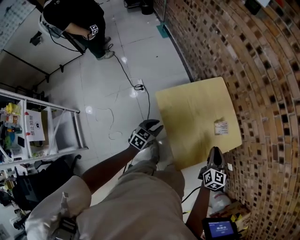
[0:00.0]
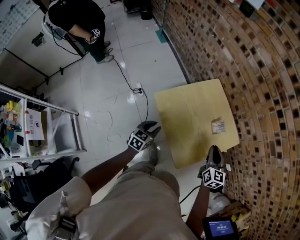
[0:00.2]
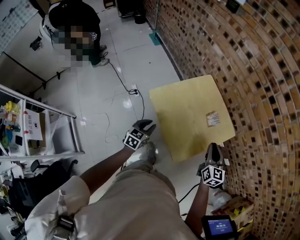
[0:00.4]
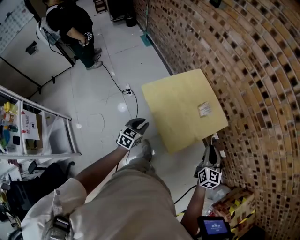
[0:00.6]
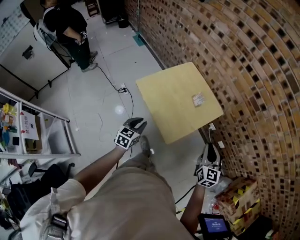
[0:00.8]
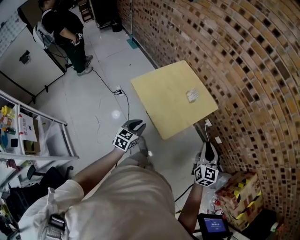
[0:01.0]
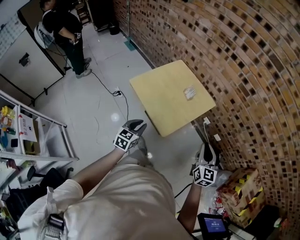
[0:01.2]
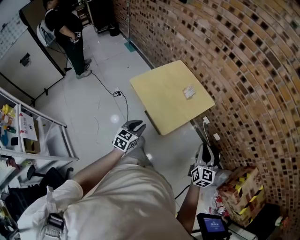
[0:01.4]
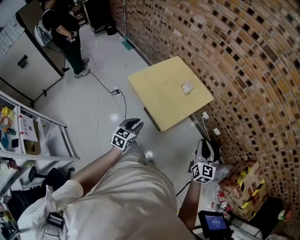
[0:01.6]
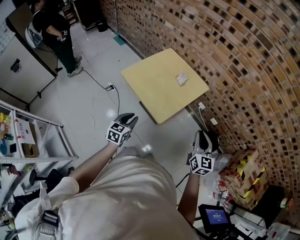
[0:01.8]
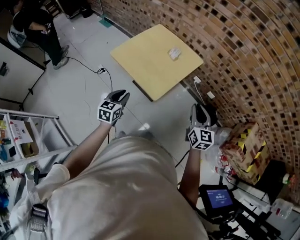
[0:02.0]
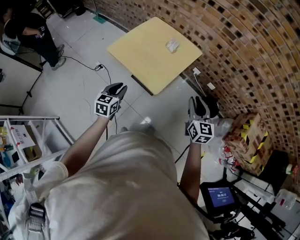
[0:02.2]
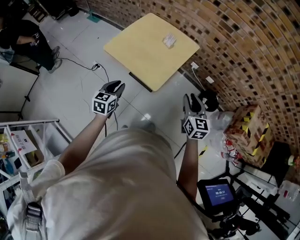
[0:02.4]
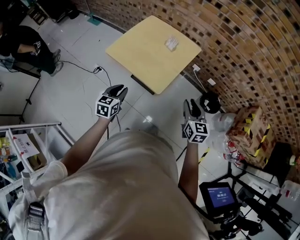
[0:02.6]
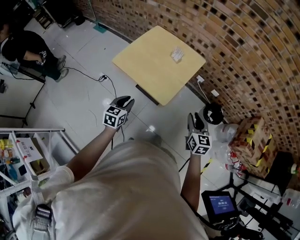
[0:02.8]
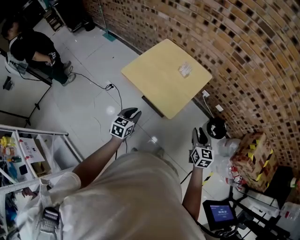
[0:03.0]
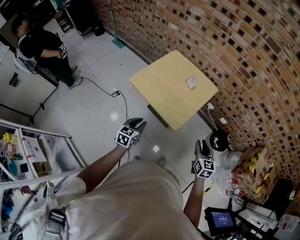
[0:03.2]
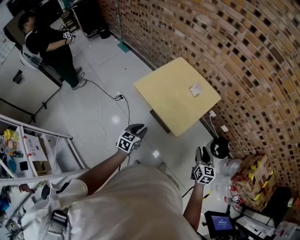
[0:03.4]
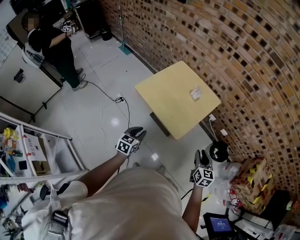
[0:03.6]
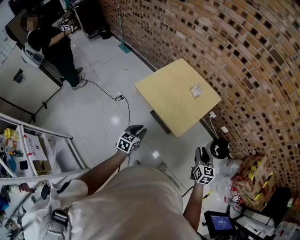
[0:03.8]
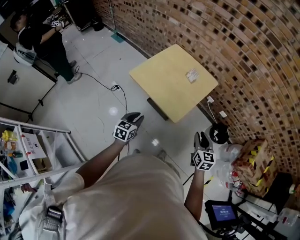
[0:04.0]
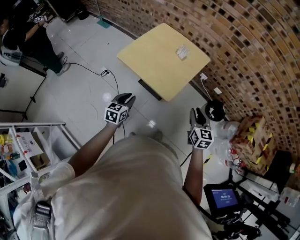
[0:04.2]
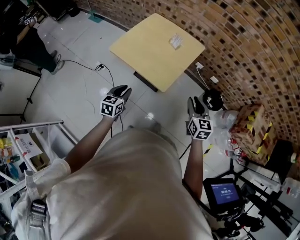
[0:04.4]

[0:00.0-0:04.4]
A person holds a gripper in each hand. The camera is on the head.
0:00.0 to 0:01.4: The right gripper travels backward and to the right by some 35 cm. Meanwhile the left gripper is displaced backward, to the right and upward by approximately 30 cm.
0:01.4 to 0:03.0: The left gripper moves to the left, approximately 5 cm. Meanwhile the right gripper is displaced downward and to the left by roughly 10 cm.
0:03.0 to 0:04.4: The grippers move only a little.

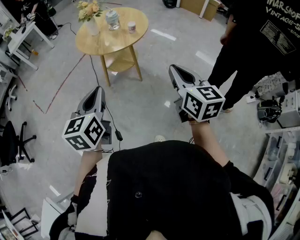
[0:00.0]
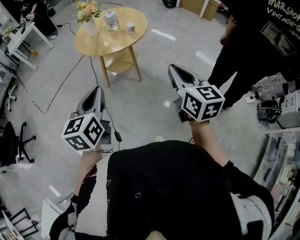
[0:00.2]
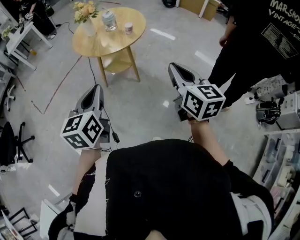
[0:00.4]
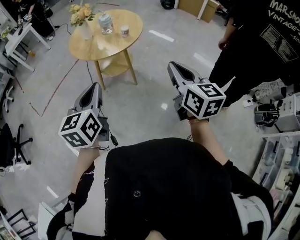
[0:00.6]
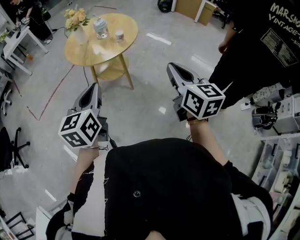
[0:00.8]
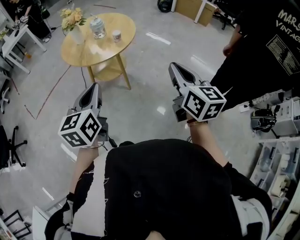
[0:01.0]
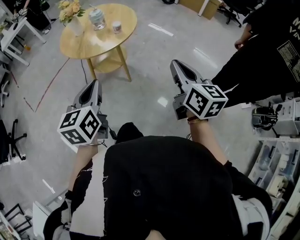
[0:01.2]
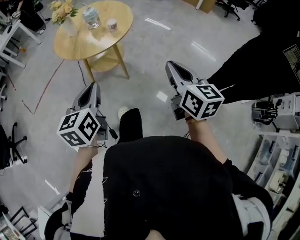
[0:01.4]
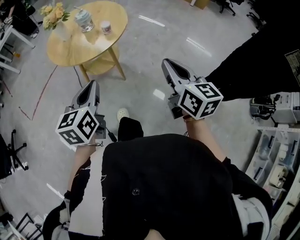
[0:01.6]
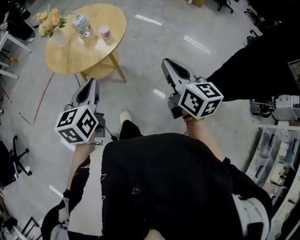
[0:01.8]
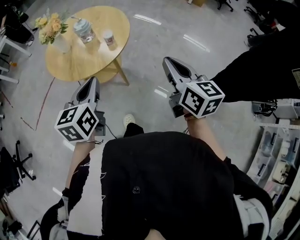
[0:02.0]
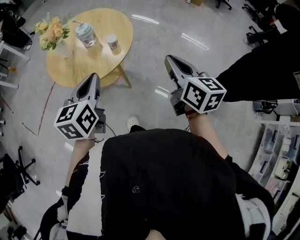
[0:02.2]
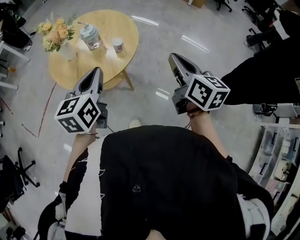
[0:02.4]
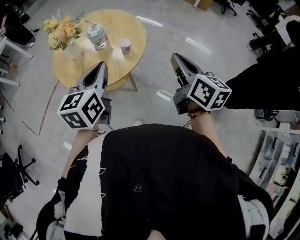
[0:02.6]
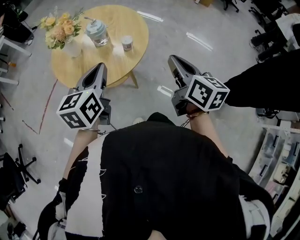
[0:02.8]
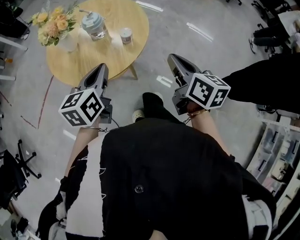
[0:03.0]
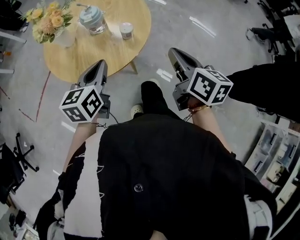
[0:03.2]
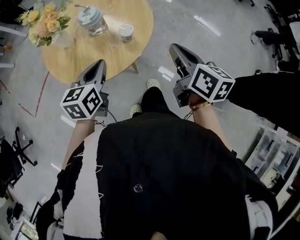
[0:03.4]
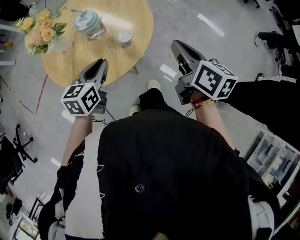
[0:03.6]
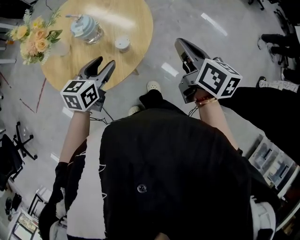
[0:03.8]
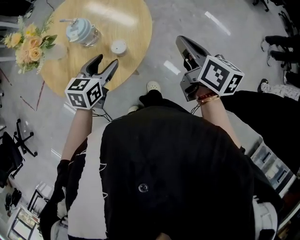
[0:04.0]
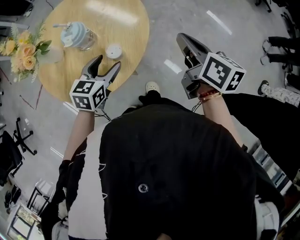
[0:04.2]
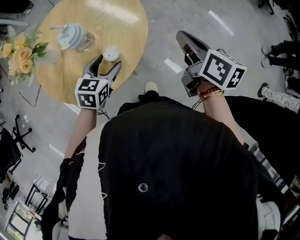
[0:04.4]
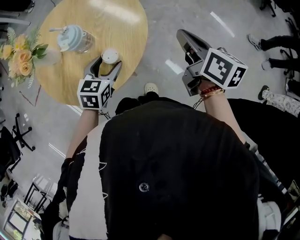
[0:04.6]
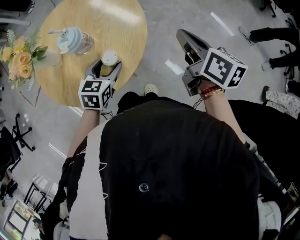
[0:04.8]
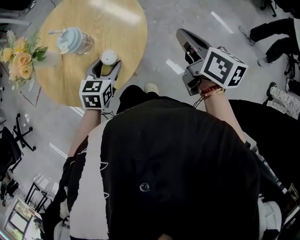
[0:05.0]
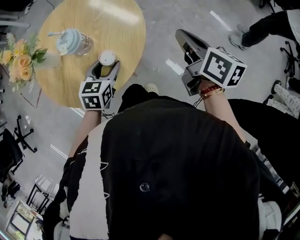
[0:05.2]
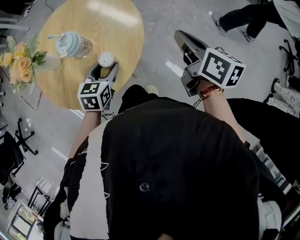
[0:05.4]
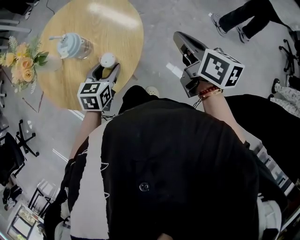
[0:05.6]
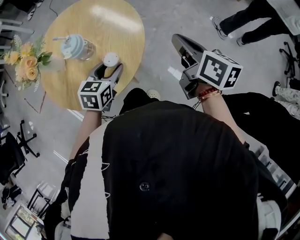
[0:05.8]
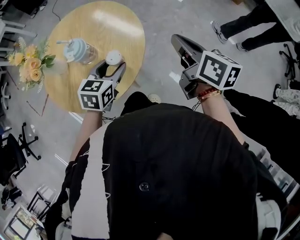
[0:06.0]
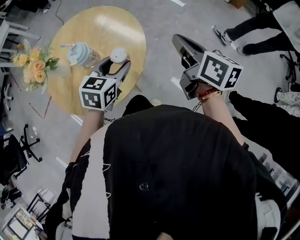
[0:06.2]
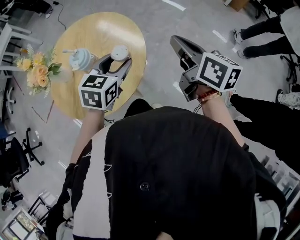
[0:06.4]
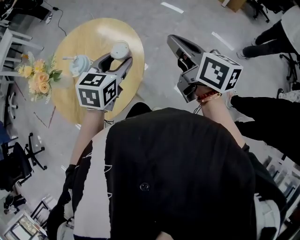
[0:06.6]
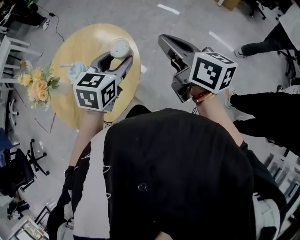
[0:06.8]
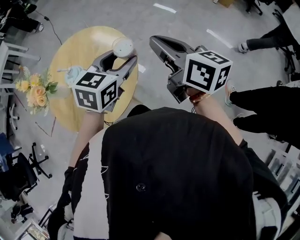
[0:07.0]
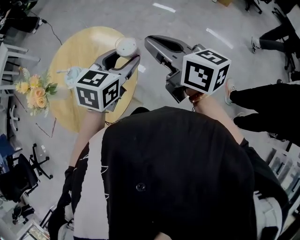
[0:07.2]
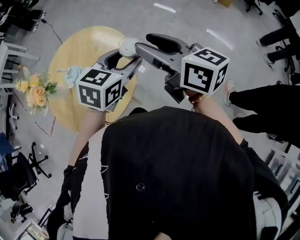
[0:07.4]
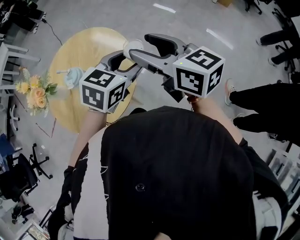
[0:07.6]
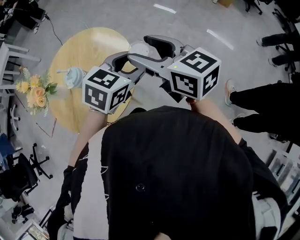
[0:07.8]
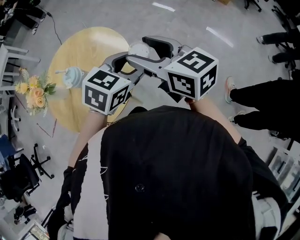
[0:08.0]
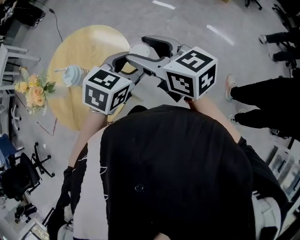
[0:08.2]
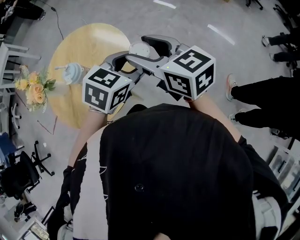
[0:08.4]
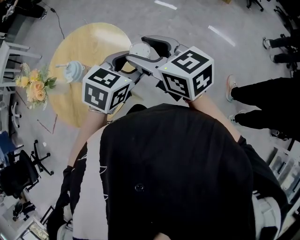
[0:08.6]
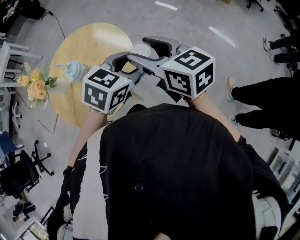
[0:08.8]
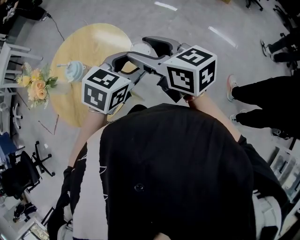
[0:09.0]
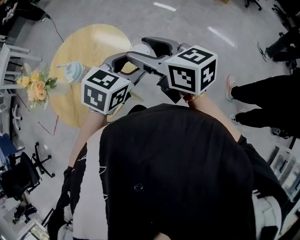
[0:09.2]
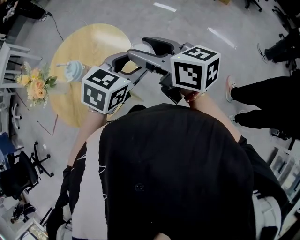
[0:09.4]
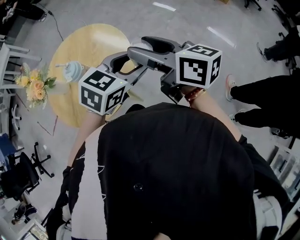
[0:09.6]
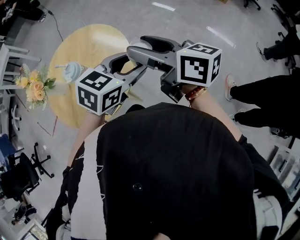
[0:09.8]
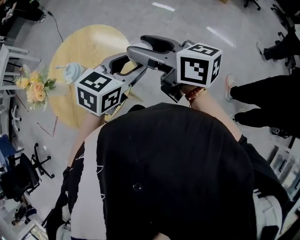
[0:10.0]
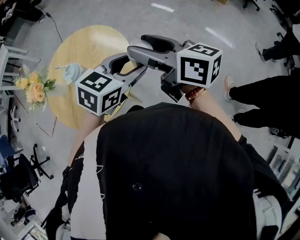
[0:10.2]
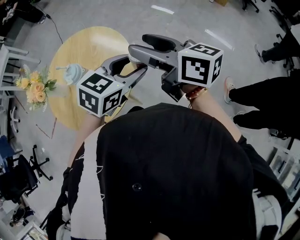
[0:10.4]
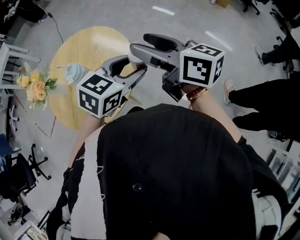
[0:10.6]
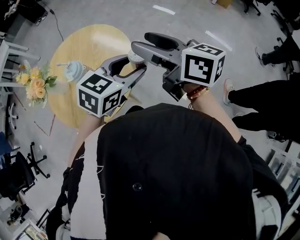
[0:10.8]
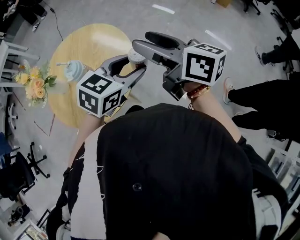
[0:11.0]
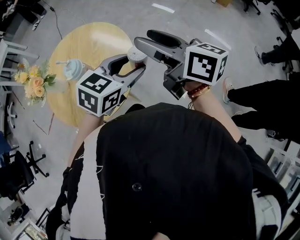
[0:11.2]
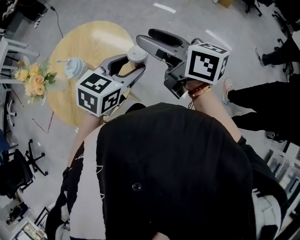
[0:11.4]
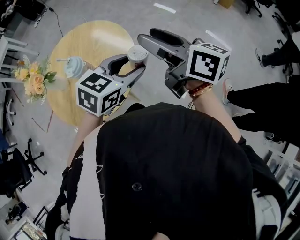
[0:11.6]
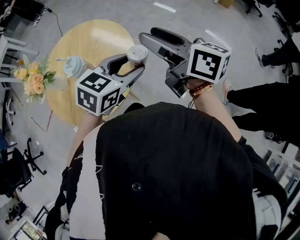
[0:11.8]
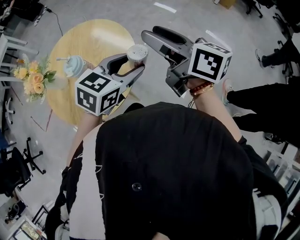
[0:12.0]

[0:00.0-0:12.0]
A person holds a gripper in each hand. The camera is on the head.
0:00.0 to 0:01.6: Both grippers move forward and to the right, approximately 15 cm.
0:01.6 to 0:03.0: The left gripper moves forward, approximately 20 cm. The right gripper moves forward and to the left, about 20 cm.
0:03.0 to 0:04.4: The right gripper shifts some 20 cm forward; the left gripper moves downward and forward, approximately 20 cm, rotates roughly 20 degrees, and opens up.
0:04.4 to 0:06.0: The left gripper goes approximately 5 cm upward.
0:06.0 to 0:07.6: The left gripper is displaced to the right and upward by approximately 20 cm; the right gripper heads upward, covering about 10 cm, swivels some 30 degrees, and opens up.
0:07.6 to 0:12.0: The grippers stay close to where they were, moving slightly.

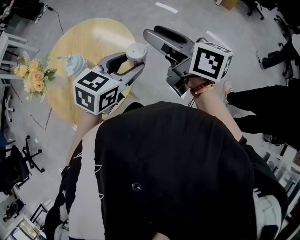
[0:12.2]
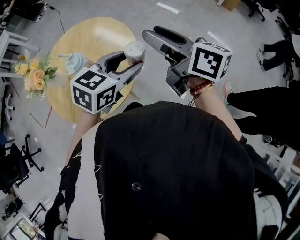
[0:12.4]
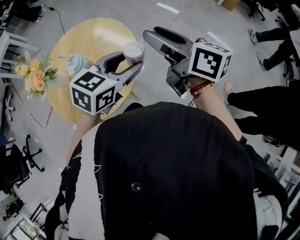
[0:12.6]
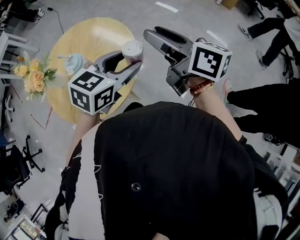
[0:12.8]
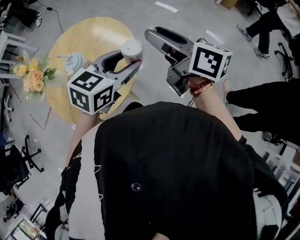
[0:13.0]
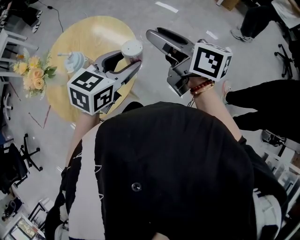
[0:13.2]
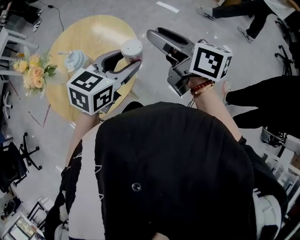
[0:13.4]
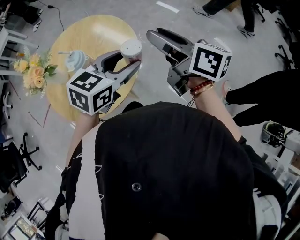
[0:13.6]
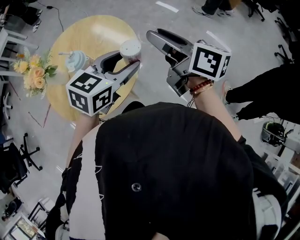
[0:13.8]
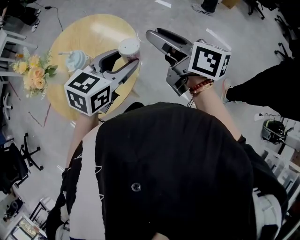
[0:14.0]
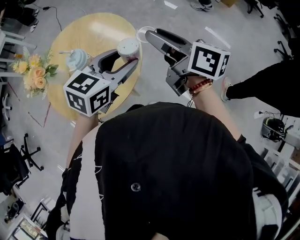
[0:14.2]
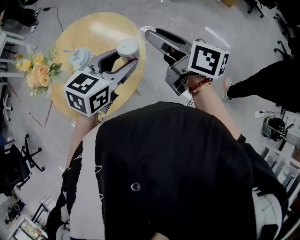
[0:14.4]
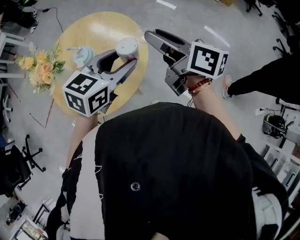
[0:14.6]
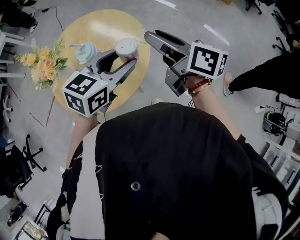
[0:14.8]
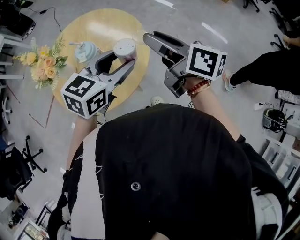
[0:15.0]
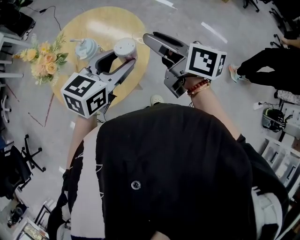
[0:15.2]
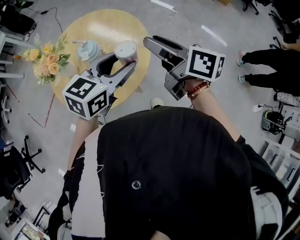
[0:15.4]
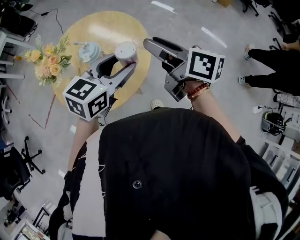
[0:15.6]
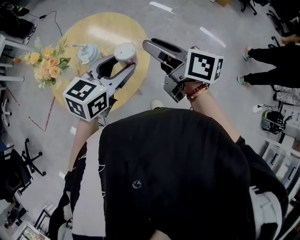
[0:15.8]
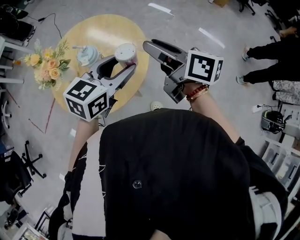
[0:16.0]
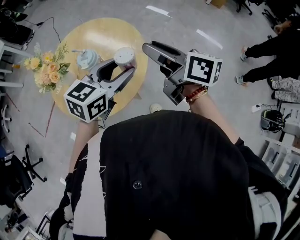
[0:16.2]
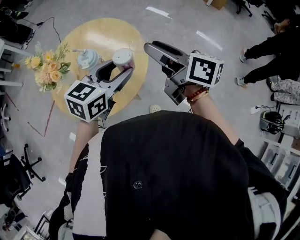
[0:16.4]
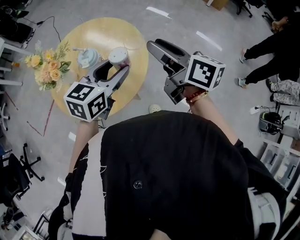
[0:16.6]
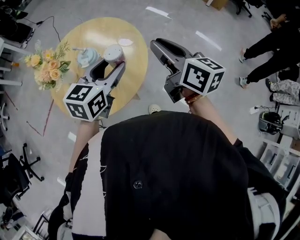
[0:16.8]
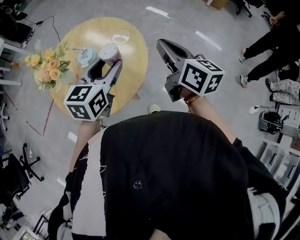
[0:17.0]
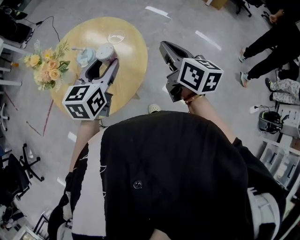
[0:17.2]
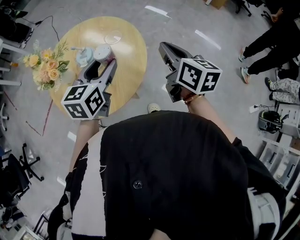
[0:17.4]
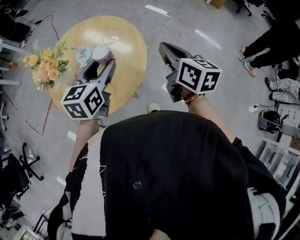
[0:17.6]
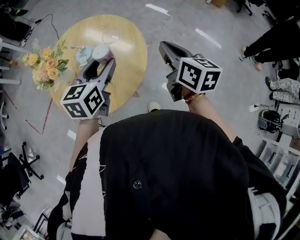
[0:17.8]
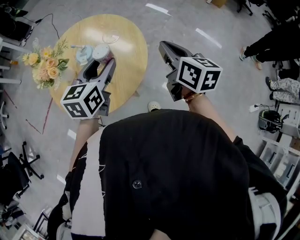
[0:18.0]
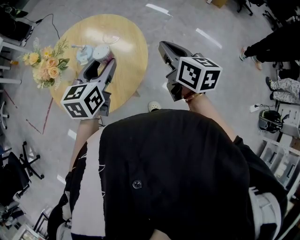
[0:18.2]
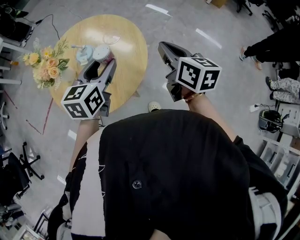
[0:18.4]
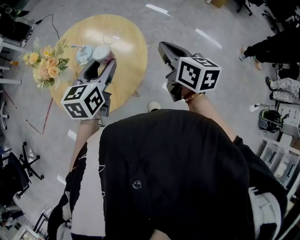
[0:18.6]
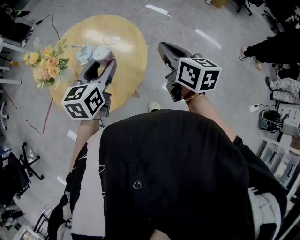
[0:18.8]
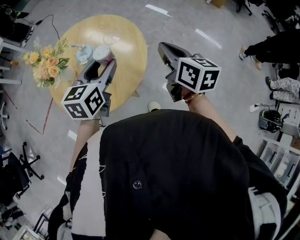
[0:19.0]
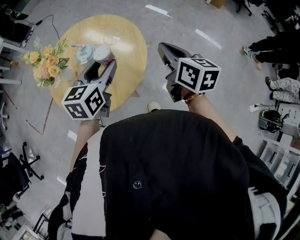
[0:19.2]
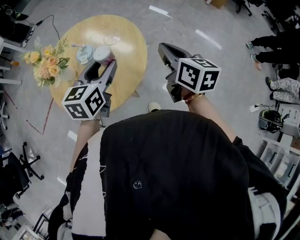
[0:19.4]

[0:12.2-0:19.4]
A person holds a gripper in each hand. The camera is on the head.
0:12.2 to 0:13.6: The grippers make only small movements.
0:13.6 to 0:15.0: The left gripper goes about 5 cm to the left, while the right gripper ends up approximately 5 cm from where it was.
0:15.0 to 0:16.6: The grippers make only small movements.
0:16.6 to 0:18.0: The left gripper travels to the left by roughly 5 cm. The right gripper shifts approximately 5 cm downward, turns by approximately 20 degrees, and closes.
0:18.0 to 0:19.4: The grippers make only small movements.
